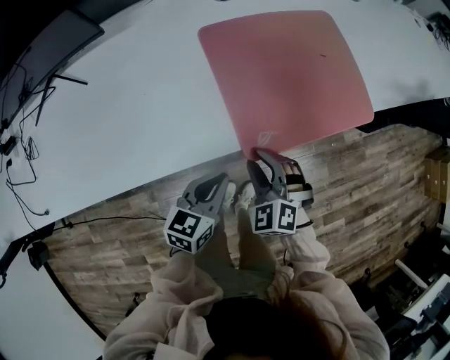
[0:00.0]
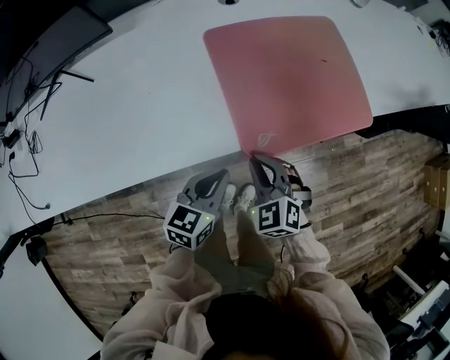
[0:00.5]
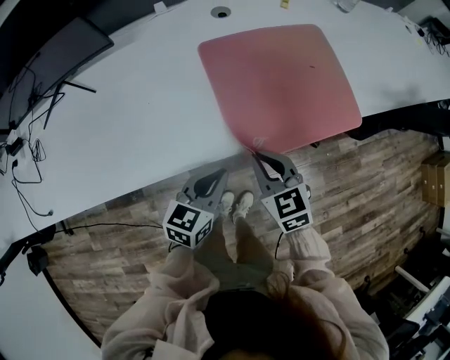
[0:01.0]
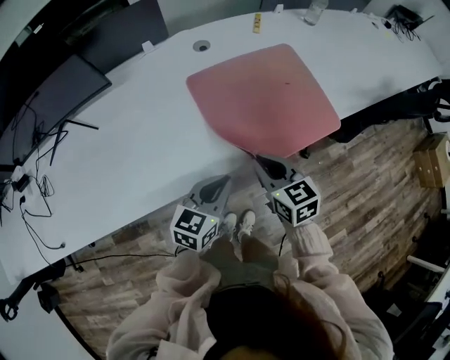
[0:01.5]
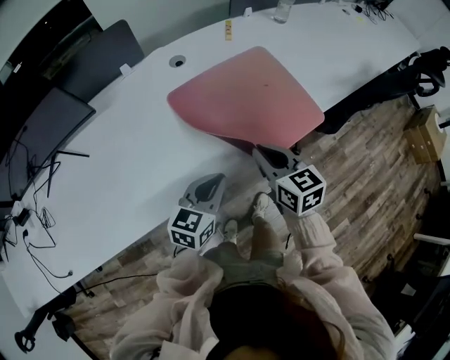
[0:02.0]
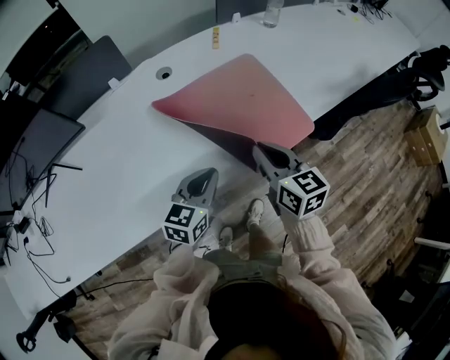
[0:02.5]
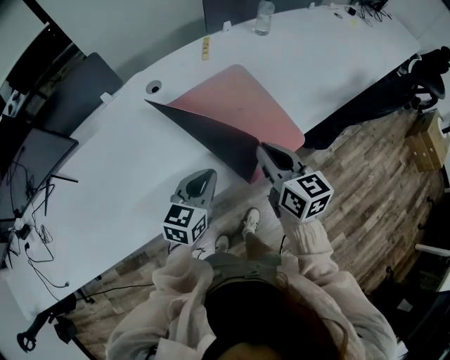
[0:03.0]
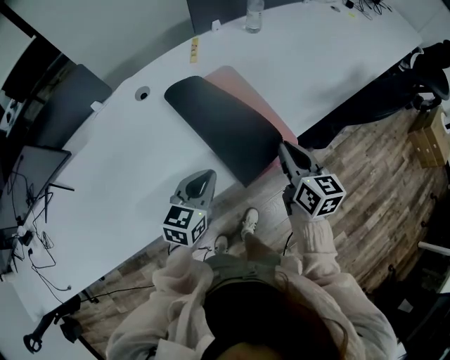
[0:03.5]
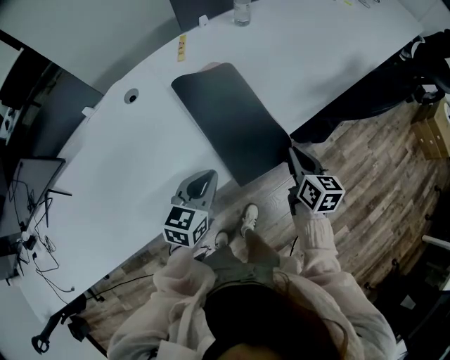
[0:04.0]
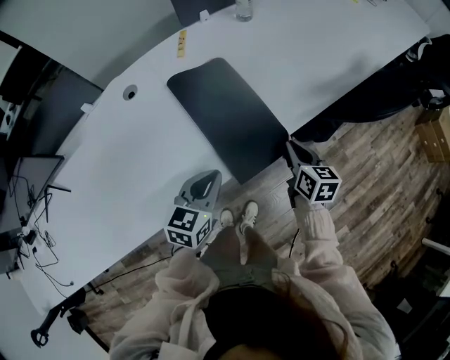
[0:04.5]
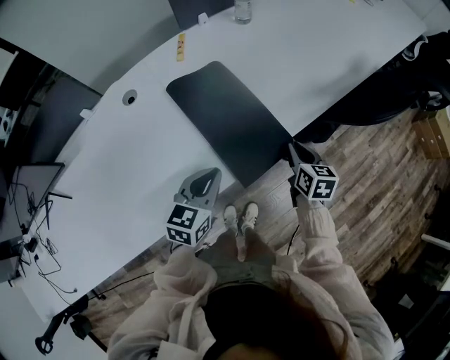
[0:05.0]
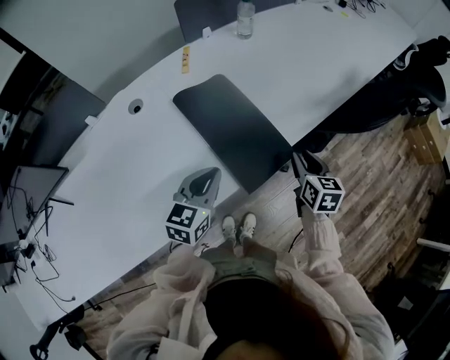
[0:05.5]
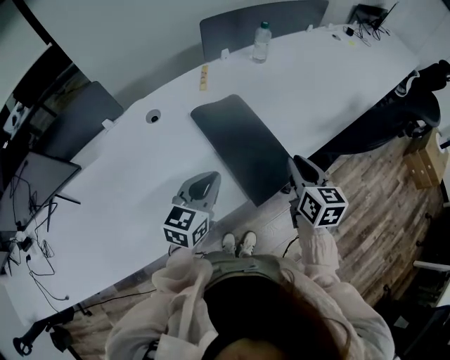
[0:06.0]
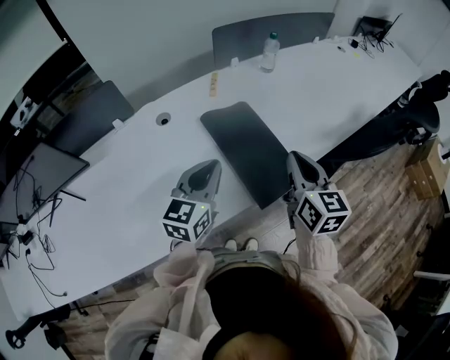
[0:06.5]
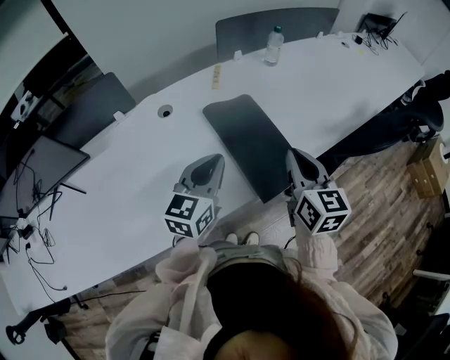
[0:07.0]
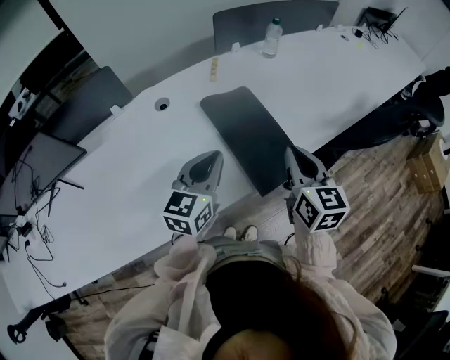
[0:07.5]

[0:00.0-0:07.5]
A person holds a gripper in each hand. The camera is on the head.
0:00.0 to 0:02.0: The left gripper heads upward and forward, covering about 10 cm; the right gripper shifts approximately 15 cm upward, forward and to the right, twists approximately 50 degrees clockwise, seen from behind, and closes up.
0:02.0 to 0:04.0: The right gripper shifts about 30 cm to the right and forward, and rotates approximately 30 degrees; the left gripper shifts some 20 cm to the right and forward.
0:04.0 to 0:05.5: The right gripper opens its fingers.
0:05.5 to 0:07.5: The left gripper heads upward and to the left, covering about 10 cm. Meanwhile the right gripper travels upward and to the left by some 20 cm, rotates roughly 20 degrees, and closes.

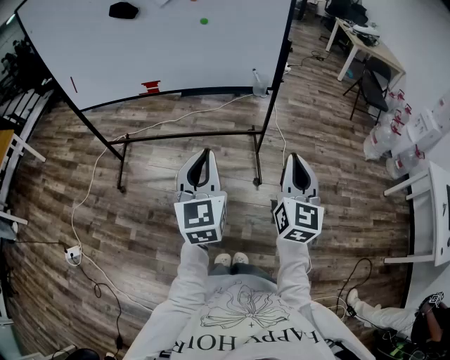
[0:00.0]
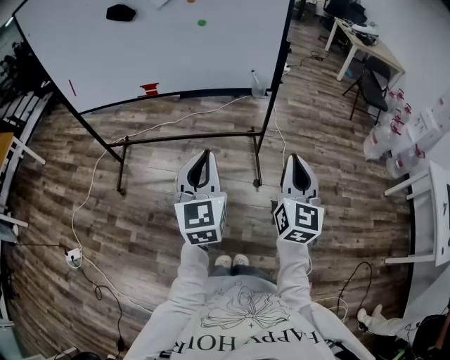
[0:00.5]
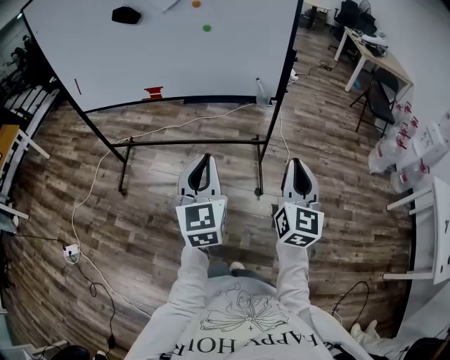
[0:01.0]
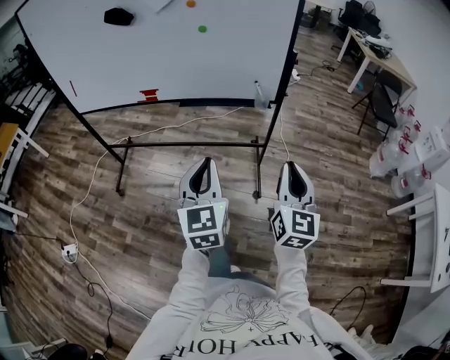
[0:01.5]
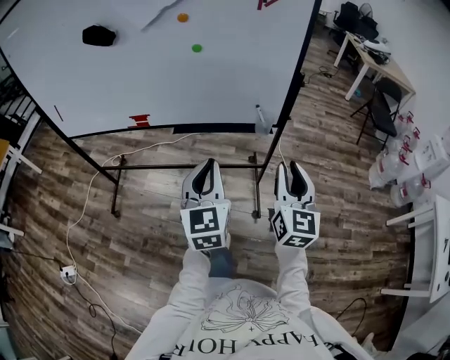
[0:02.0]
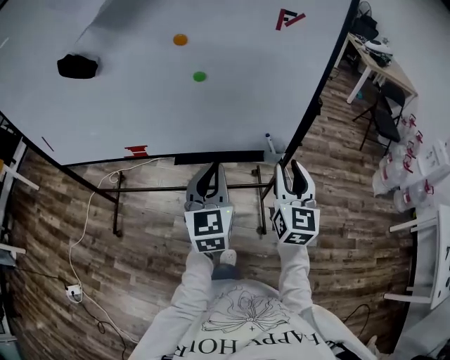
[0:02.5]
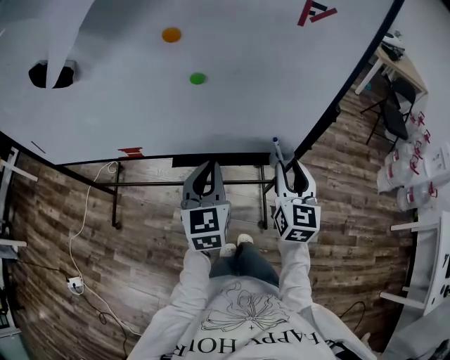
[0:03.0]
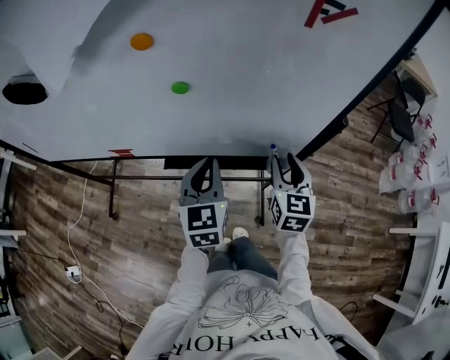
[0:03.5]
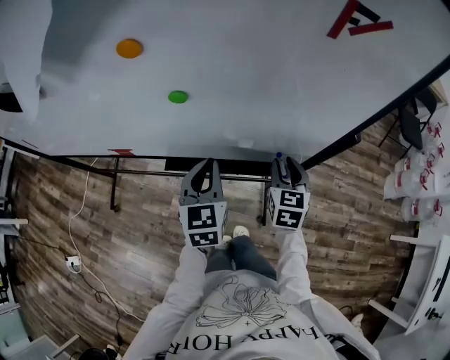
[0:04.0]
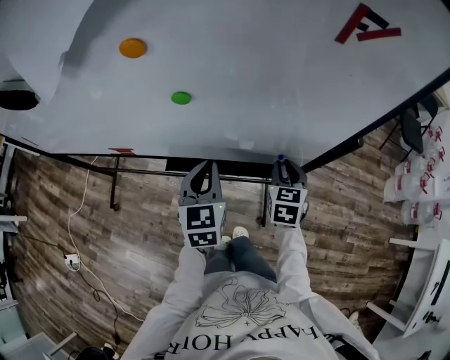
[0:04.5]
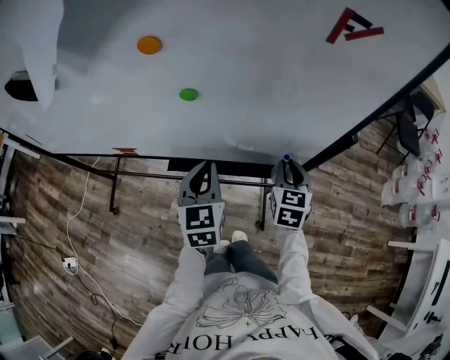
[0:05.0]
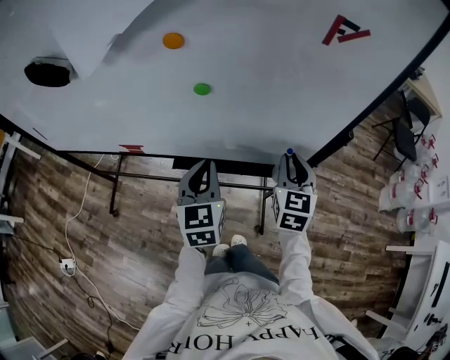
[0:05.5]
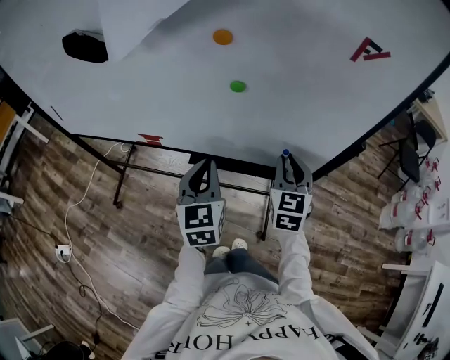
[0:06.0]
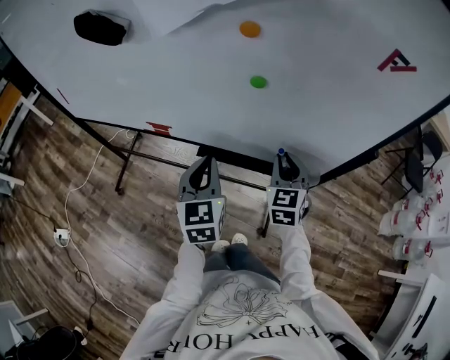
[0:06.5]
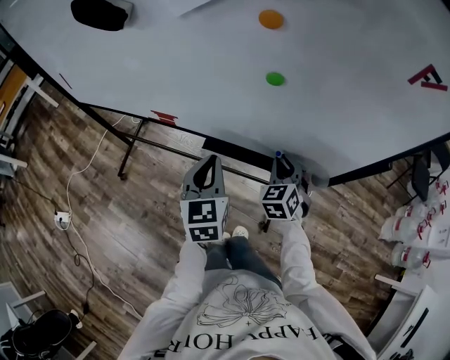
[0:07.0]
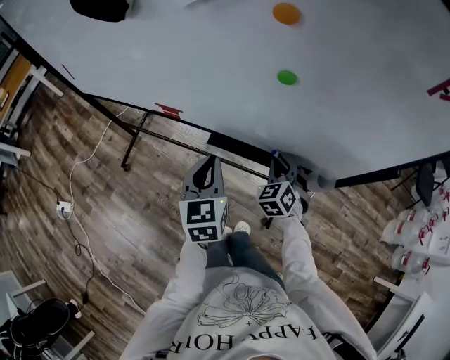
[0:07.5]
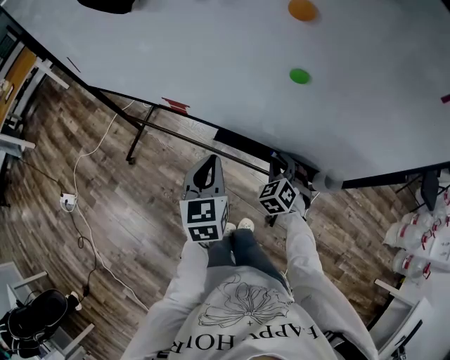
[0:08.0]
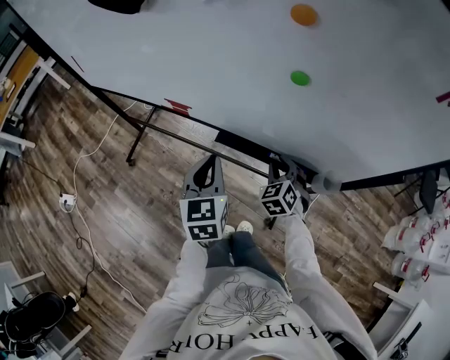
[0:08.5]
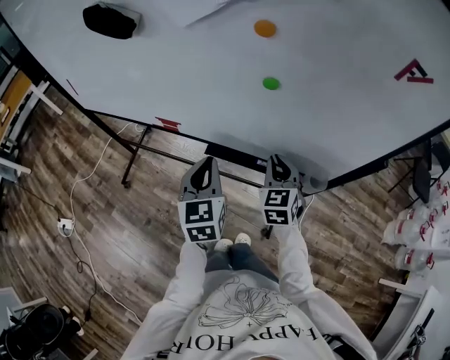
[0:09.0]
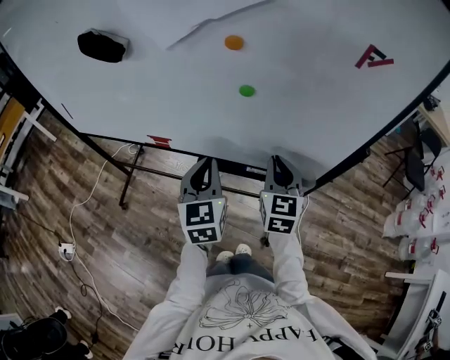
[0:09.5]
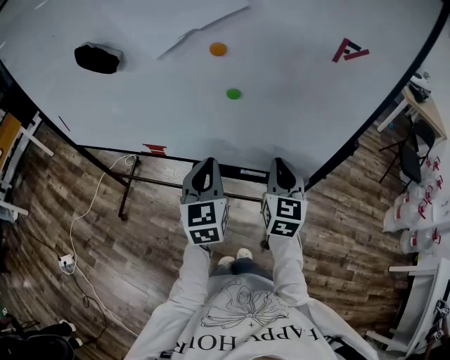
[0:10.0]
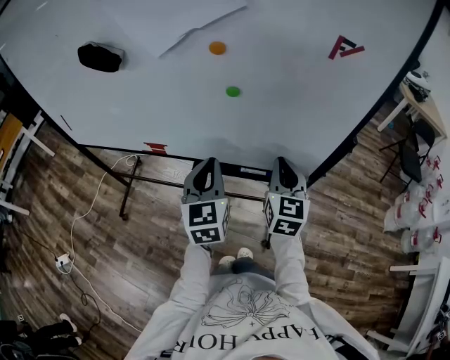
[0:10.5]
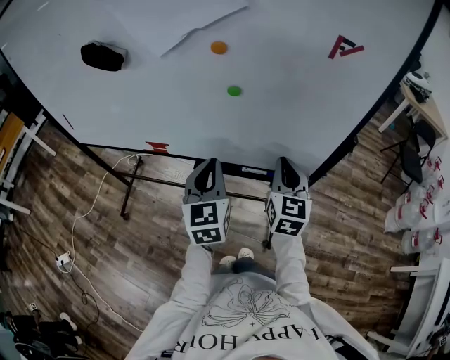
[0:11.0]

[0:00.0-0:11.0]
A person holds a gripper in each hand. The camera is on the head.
0:00.0 to 0:02.0: Both grippers move forward, roughly 25 cm.
0:02.0 to 0:03.5: Both grippers travel together forward, some 30 cm.
0:03.5 to 0:05.5: The right gripper travels downward and back again, about 10 cm each way.
0:05.5 to 0:07.5: The right gripper is displaced downward and to the left by roughly 20 cm, and changes its angle by some 40 degrees. Meanwhile the left gripper heads to the left and downward, covering roughly 10 cm.
0:07.5 to 0:09.0: The right gripper shifts approximately 10 cm upward, and swivels approximately 20 degrees.
0:09.0 to 0:11.0: The left gripper shifts some 10 cm upward and to the right. Meanwhile the right gripper moves upward, to the right and backward, about 15 cm, and turns by some 30 degrees.

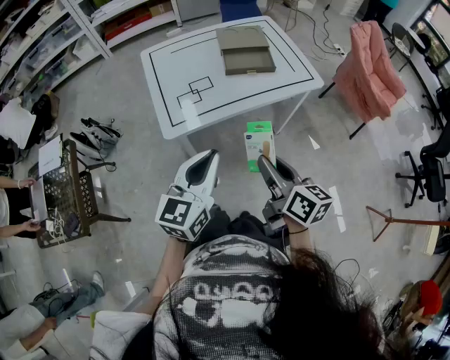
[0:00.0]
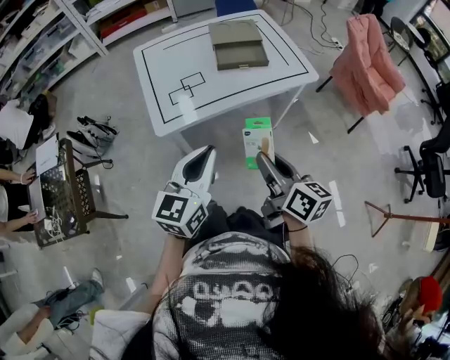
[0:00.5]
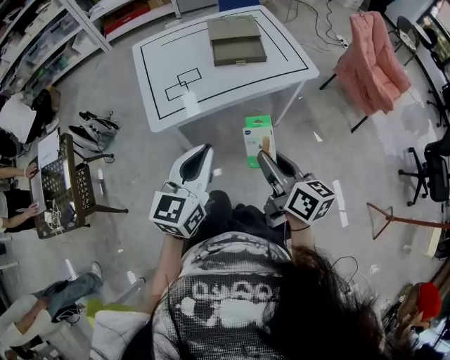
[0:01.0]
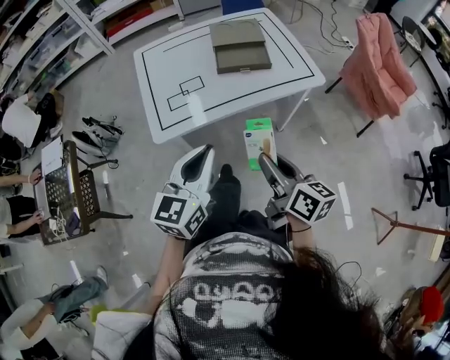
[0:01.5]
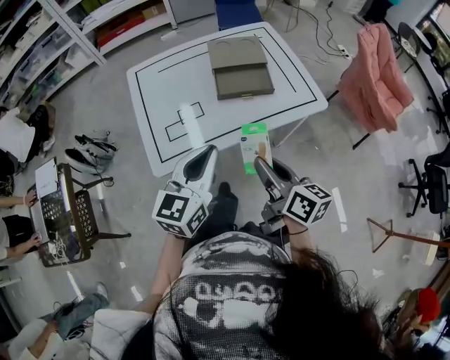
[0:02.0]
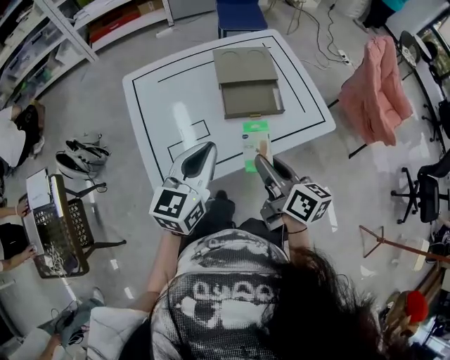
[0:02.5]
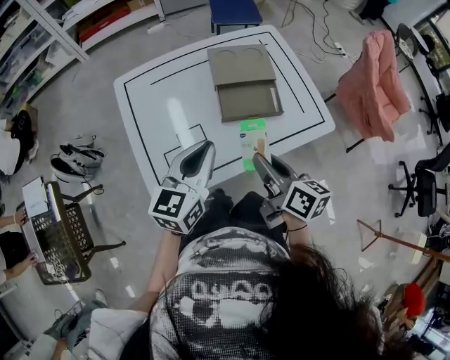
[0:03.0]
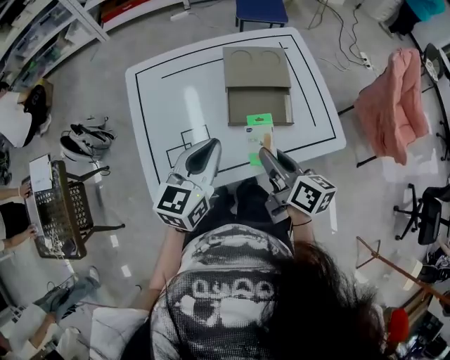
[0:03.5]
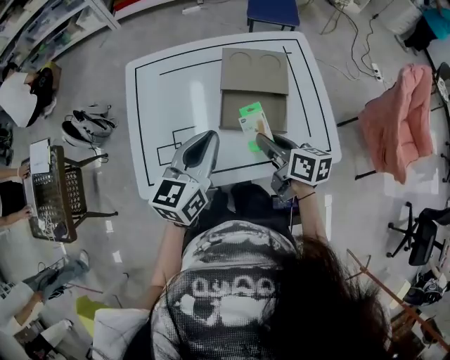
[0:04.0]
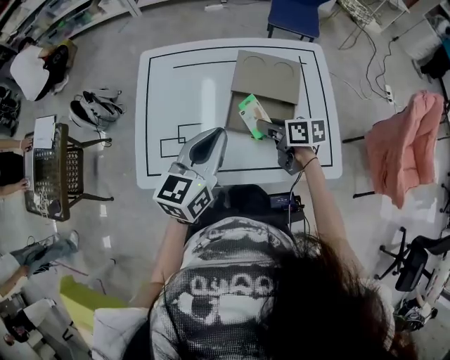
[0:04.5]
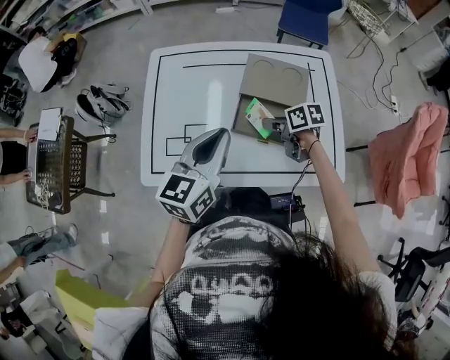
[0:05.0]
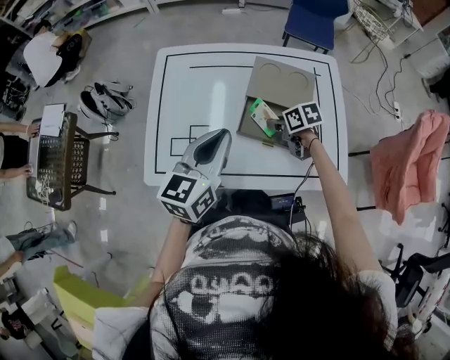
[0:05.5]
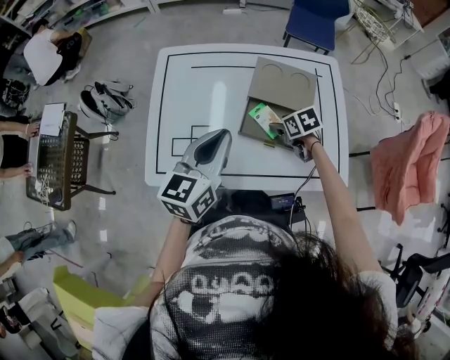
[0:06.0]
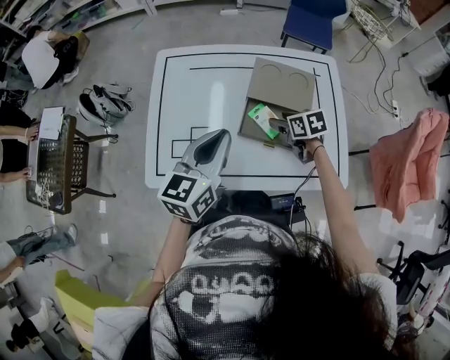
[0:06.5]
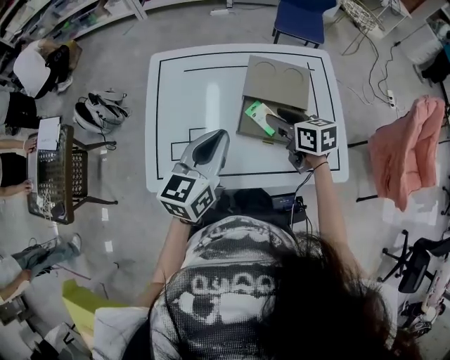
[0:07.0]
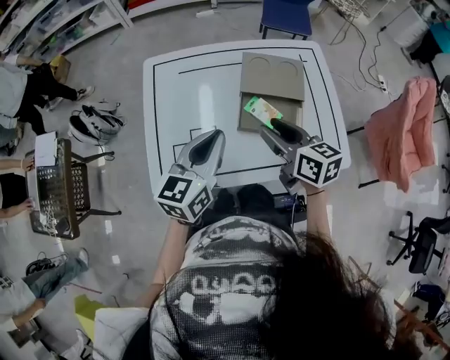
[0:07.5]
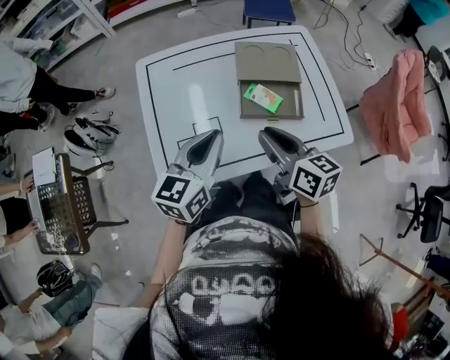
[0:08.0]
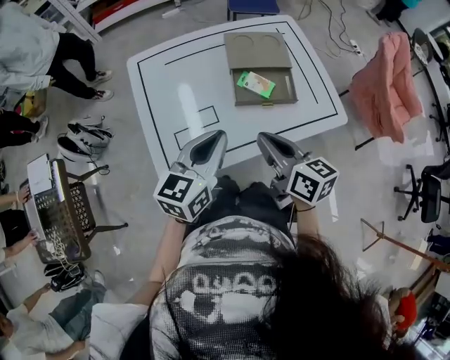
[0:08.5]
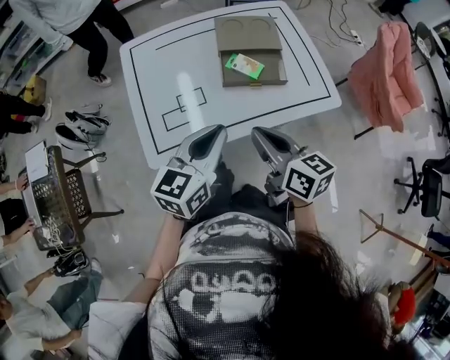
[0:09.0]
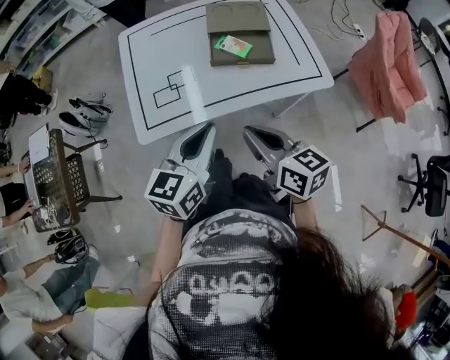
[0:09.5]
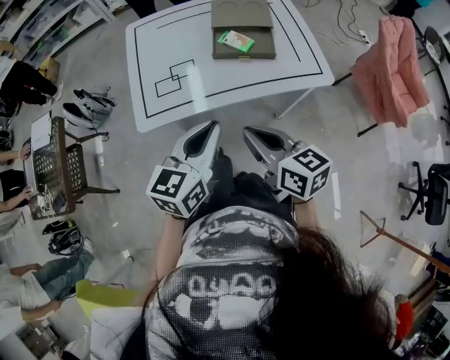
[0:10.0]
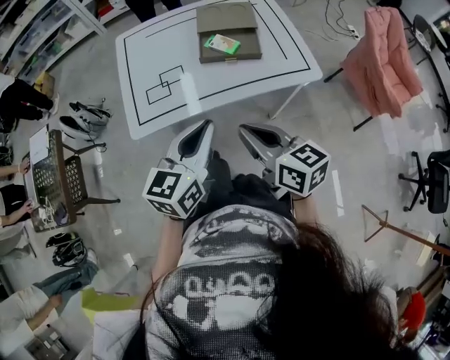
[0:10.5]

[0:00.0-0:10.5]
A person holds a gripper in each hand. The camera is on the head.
0:00.0 to 0:02.0: The grippers both shift forward by some 20 cm.
0:02.0 to 0:04.0: Both grippers move forward, some 25 cm. The right gripper turns by about 20 degrees.
0:04.0 to 0:06.5: The right gripper shifts about 15 cm forward and downward, turns by roughly 40 degrees, and opens.
0:06.5 to 0:08.5: The right gripper moves roughly 30 cm, tips its fingers upward by roughly 30 degrees, and closes its fingers. The left gripper ends up roughly 10 cm from where it was, and turns by approximately 20 degrees.
0:08.5 to 0:10.5: The right gripper travels backward by about 20 cm. The left gripper is displaced backward and to the right by approximately 20 cm.
